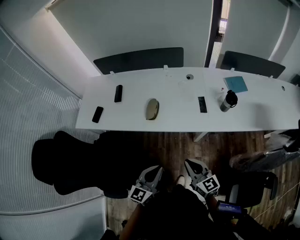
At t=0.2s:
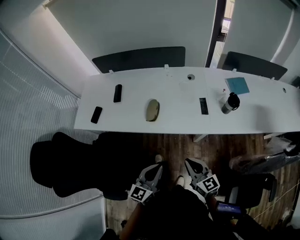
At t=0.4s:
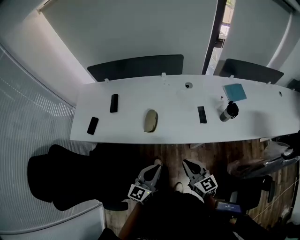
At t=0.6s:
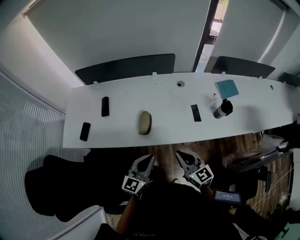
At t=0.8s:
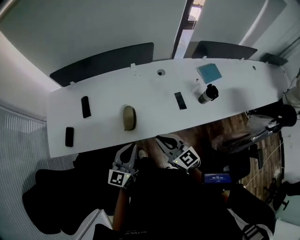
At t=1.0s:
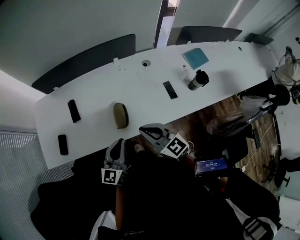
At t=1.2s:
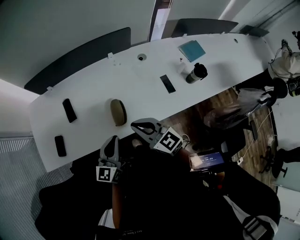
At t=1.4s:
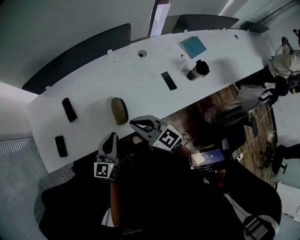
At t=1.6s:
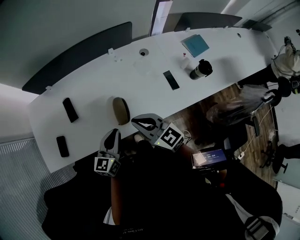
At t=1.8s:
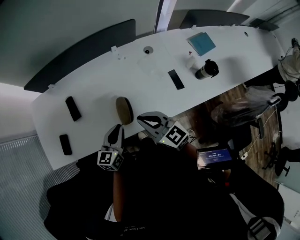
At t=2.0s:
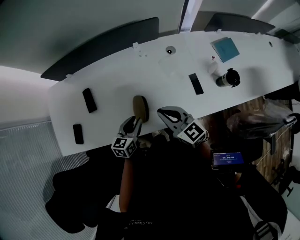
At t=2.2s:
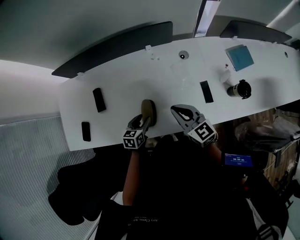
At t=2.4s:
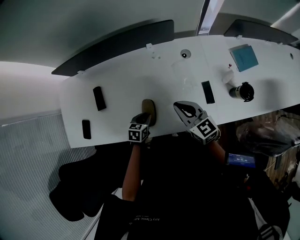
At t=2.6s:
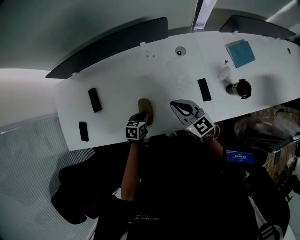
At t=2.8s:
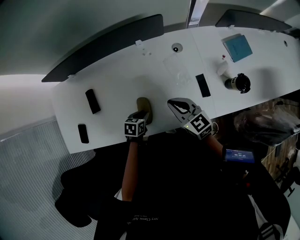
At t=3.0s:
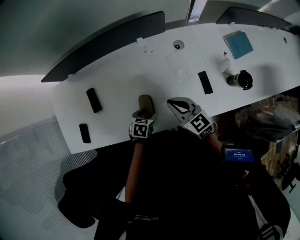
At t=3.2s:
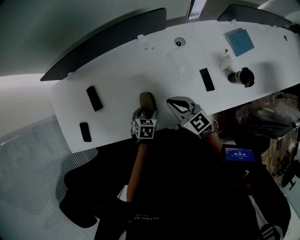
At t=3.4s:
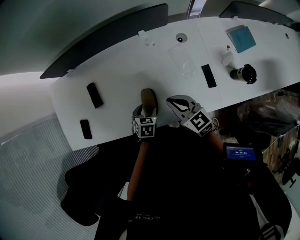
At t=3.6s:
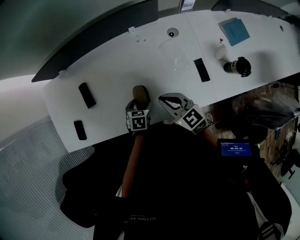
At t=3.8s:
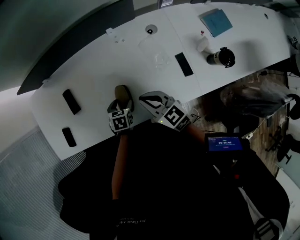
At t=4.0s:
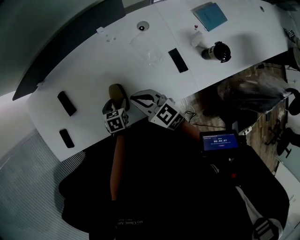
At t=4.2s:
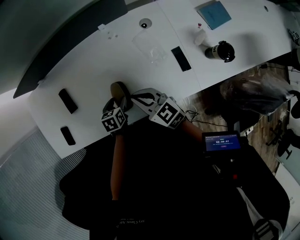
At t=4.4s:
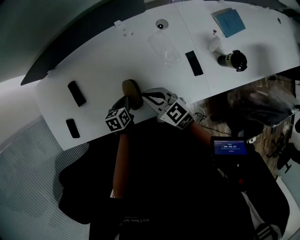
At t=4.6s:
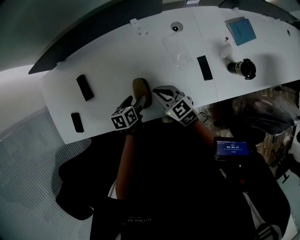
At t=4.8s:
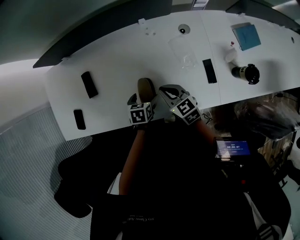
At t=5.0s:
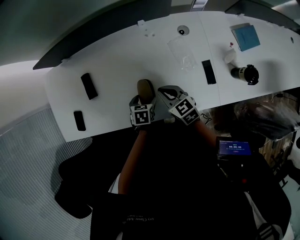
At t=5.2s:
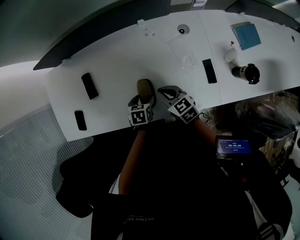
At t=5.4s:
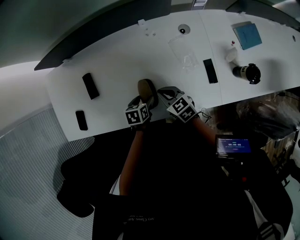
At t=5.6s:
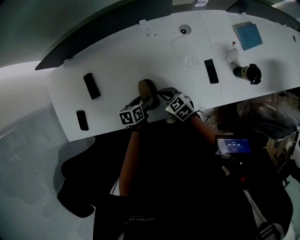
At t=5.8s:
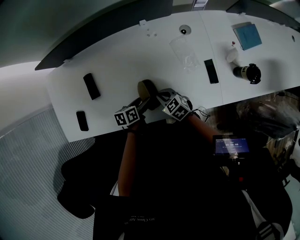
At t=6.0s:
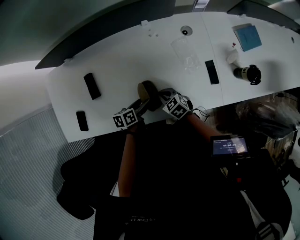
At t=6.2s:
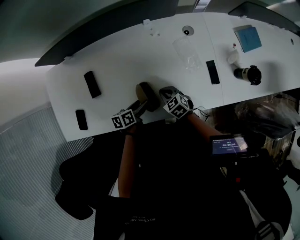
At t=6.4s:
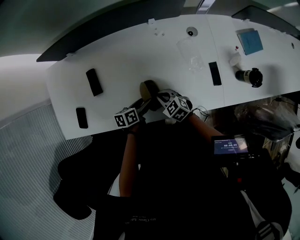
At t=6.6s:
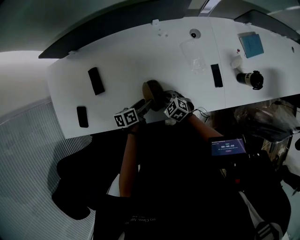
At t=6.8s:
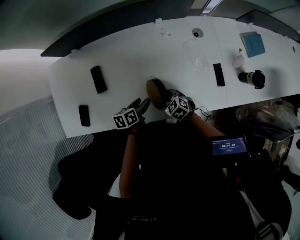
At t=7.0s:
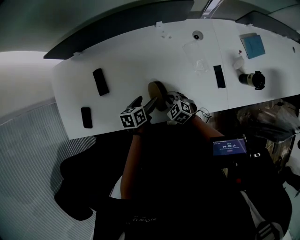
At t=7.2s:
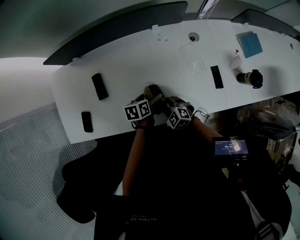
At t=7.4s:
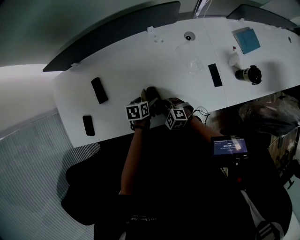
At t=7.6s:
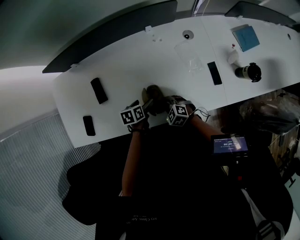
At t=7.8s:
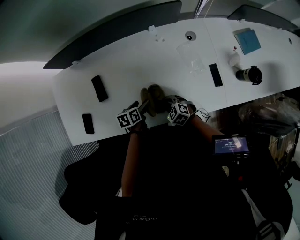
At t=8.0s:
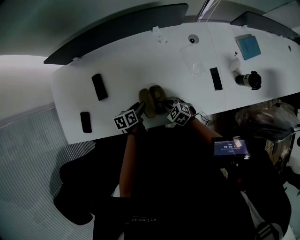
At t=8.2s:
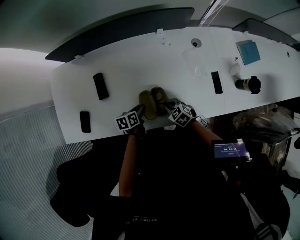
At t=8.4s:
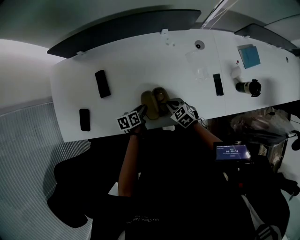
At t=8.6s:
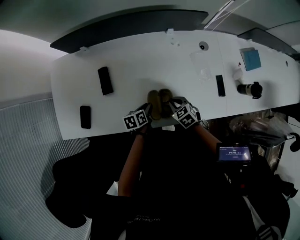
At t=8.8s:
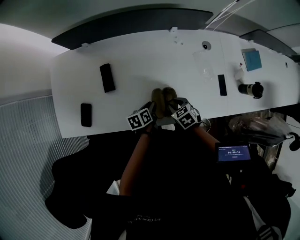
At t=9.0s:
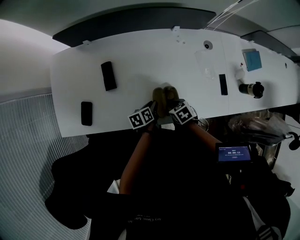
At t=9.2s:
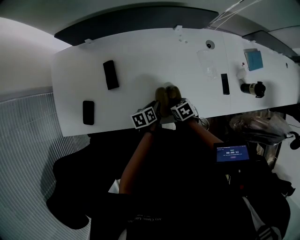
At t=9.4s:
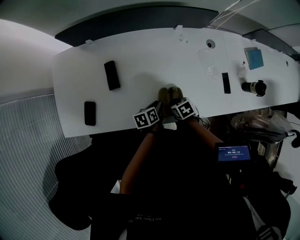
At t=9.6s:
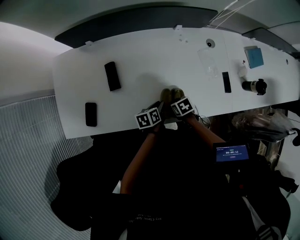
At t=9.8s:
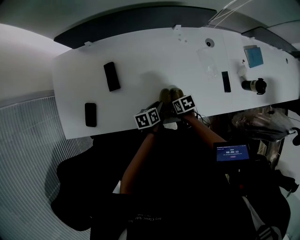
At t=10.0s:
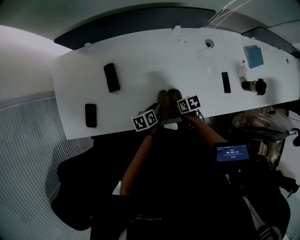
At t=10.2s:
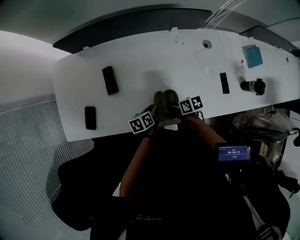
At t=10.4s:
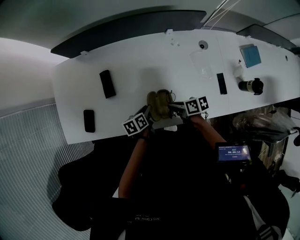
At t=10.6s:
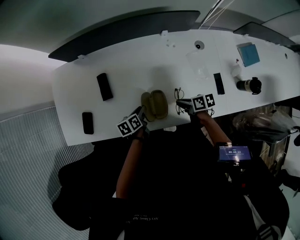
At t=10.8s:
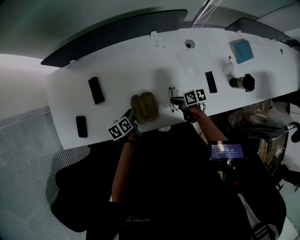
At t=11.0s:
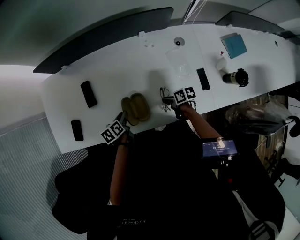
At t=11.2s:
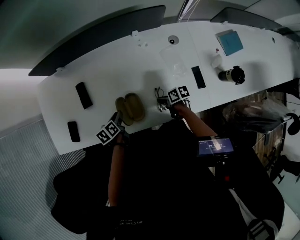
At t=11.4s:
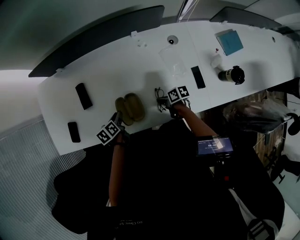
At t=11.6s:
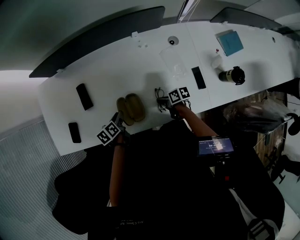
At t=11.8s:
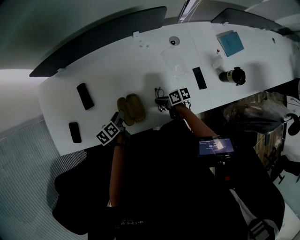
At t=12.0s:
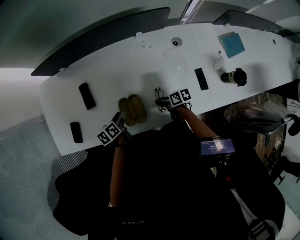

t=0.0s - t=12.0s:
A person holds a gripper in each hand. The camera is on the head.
t=0.0s - t=1.6s: The two grippers go some 35 cm forward and to the left.
t=1.6s - t=3.0s: The left gripper goes about 20 cm downward and forward, tips its fingers downward by about 50 degrees, and opens, while the right gripper travels forward, to the right and downward by roughly 15 cm.
t=3.0s - t=4.4s: The right gripper moves about 5 cm. Meanwhile the left gripper changes place by approximately 5 cm, turns by roughly 30 degrees, and closes up.
t=4.4s - t=6.0s: The left gripper turns by approximately 20 degrees, and opens; the right gripper shifts approximately 15 cm downward, and swivels approximately 30 degrees.
t=6.0s - t=7.6s: The right gripper rotates roughly 20 degrees.
t=7.6s - t=9.0s: The left gripper moves about 5 cm, swivels about 20 degrees, and closes. Meanwhile the right gripper turns by roughly 40 degrees, and opens.
t=9.0s - t=10.4s: The right gripper is displaced upward by some 5 cm, rotates about 50 degrees, and closes.
t=10.4s - t=12.0s: The right gripper heads to the right and downward, covering about 10 cm, and opens.

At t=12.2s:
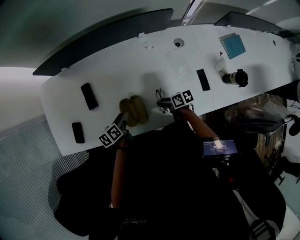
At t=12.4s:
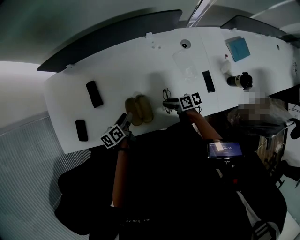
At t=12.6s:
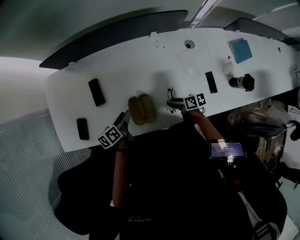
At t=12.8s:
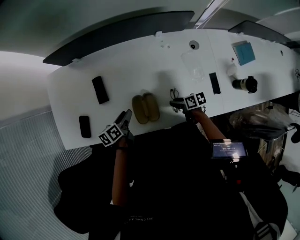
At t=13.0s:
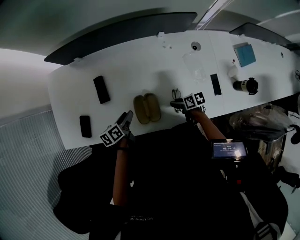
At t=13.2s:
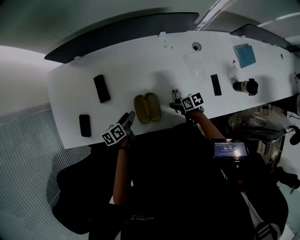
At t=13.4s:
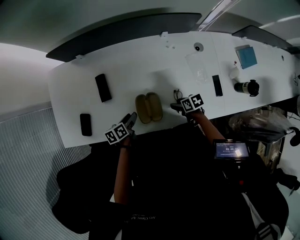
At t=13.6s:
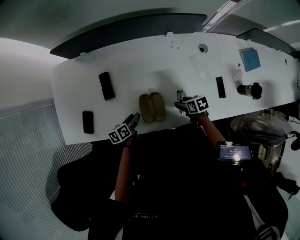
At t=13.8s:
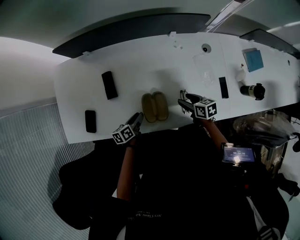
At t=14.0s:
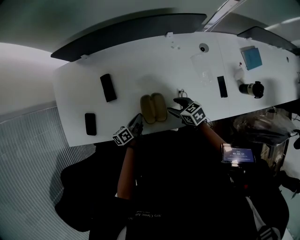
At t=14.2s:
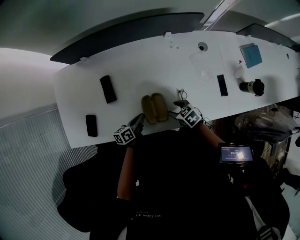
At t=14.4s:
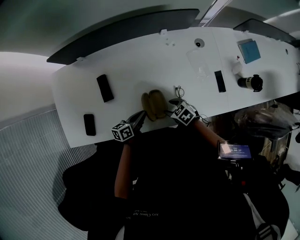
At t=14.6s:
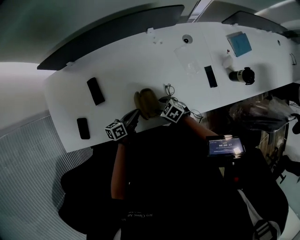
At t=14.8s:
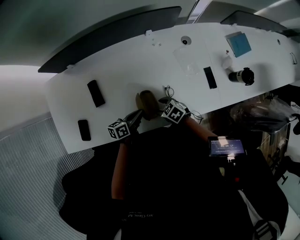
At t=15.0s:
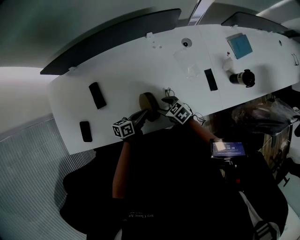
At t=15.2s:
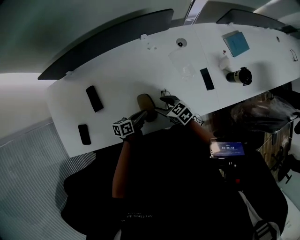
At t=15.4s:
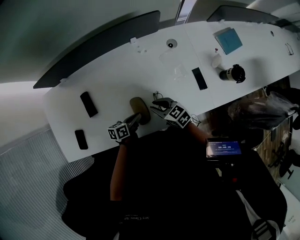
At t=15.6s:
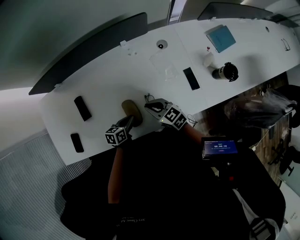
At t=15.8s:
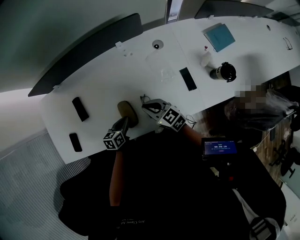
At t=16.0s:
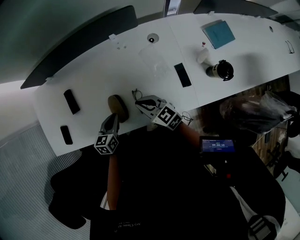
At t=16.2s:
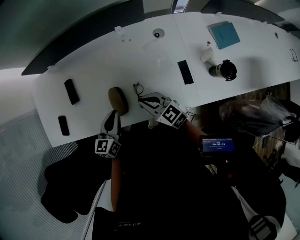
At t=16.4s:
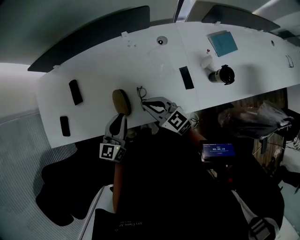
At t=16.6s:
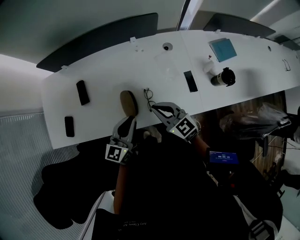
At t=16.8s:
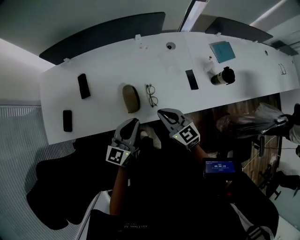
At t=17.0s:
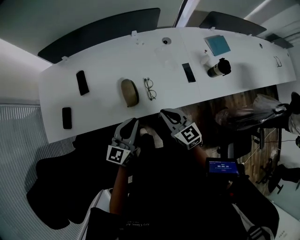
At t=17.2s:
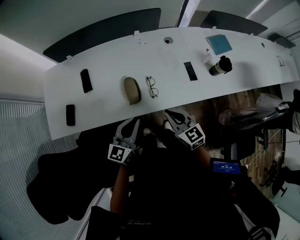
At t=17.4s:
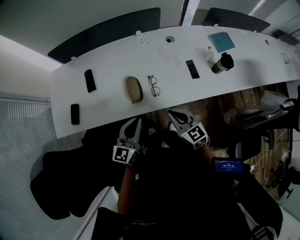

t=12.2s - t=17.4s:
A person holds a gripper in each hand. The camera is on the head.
t=12.2s - t=14.0s: The right gripper goes some 10 cm to the left and upward, swivels some 40 degrees, and opens up; the left gripper travels downward and to the left by about 10 cm, and closes.
t=14.0s - t=15.6s: The left gripper moves some 15 cm, and changes its angle by approximately 40 degrees. The right gripper moves upward, approximately 5 cm, turns by approximately 20 degrees, and closes up.
t=15.6s - t=17.4s: The left gripper shifts approximately 30 cm upward and backward, and angles its fingers upward, by approximately 30 degrees. The right gripper travels backward and upward by about 25 cm.

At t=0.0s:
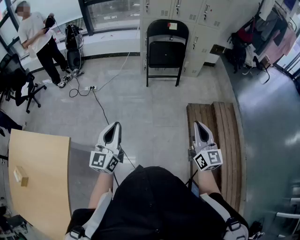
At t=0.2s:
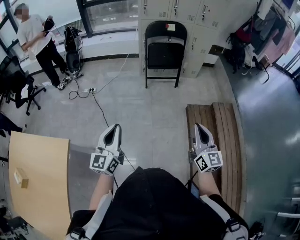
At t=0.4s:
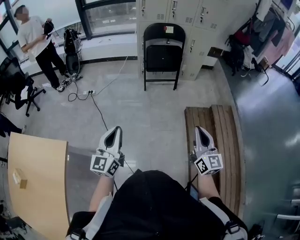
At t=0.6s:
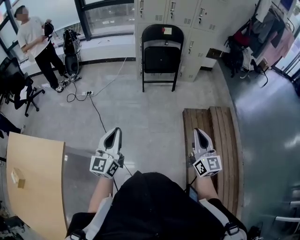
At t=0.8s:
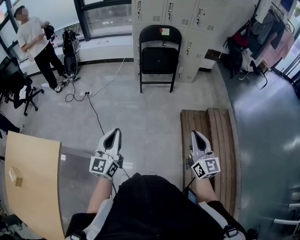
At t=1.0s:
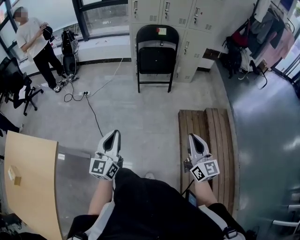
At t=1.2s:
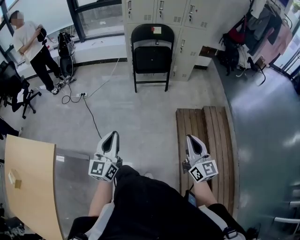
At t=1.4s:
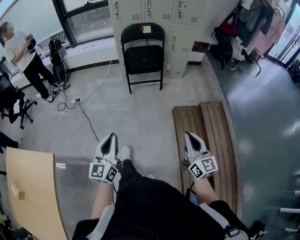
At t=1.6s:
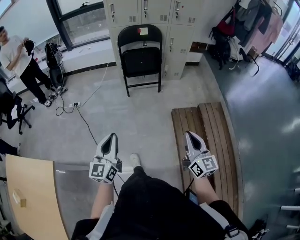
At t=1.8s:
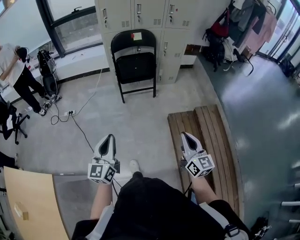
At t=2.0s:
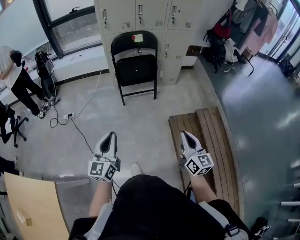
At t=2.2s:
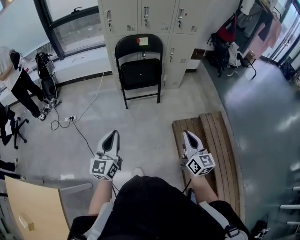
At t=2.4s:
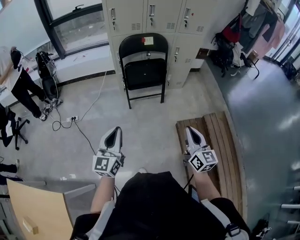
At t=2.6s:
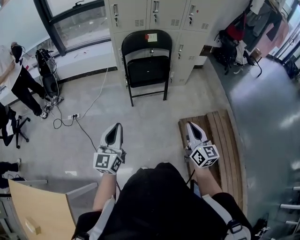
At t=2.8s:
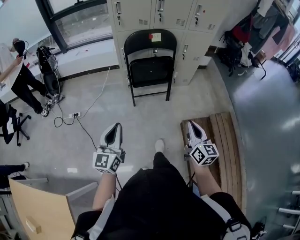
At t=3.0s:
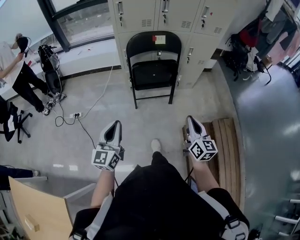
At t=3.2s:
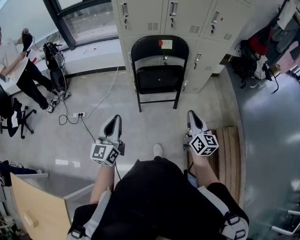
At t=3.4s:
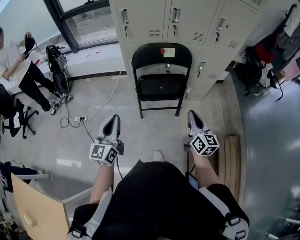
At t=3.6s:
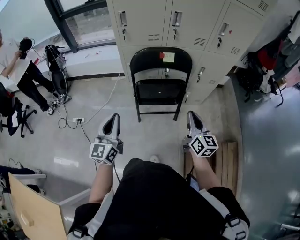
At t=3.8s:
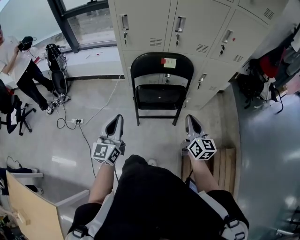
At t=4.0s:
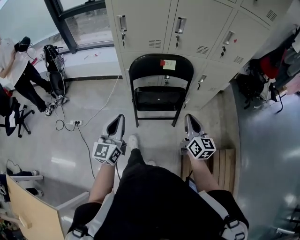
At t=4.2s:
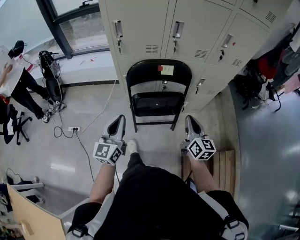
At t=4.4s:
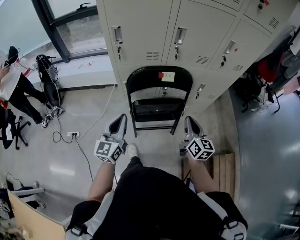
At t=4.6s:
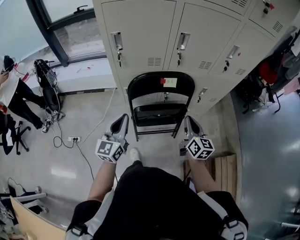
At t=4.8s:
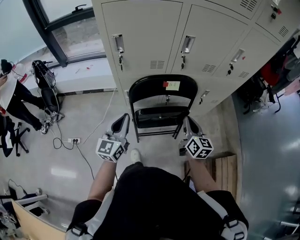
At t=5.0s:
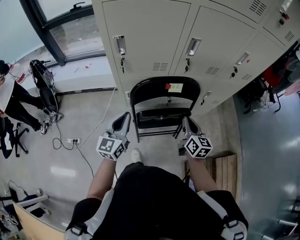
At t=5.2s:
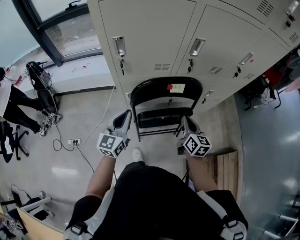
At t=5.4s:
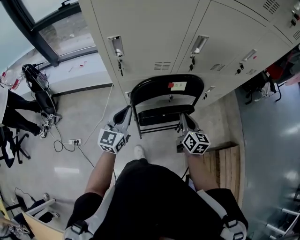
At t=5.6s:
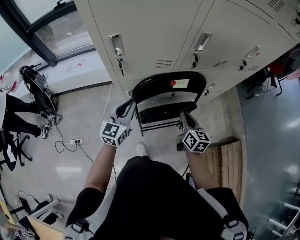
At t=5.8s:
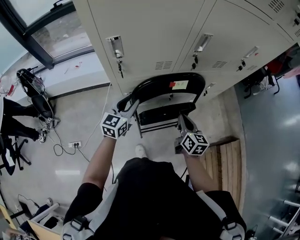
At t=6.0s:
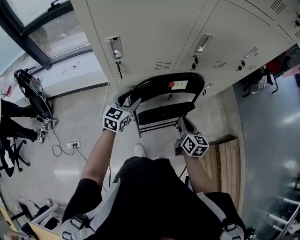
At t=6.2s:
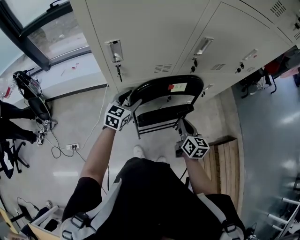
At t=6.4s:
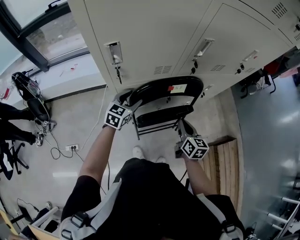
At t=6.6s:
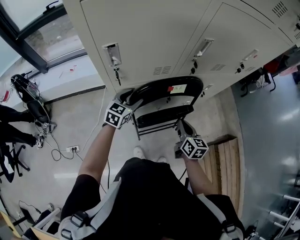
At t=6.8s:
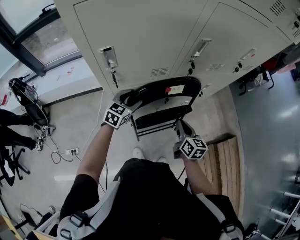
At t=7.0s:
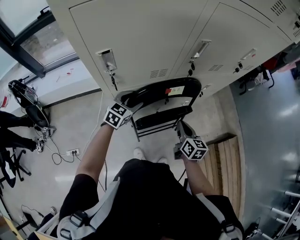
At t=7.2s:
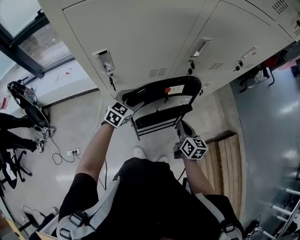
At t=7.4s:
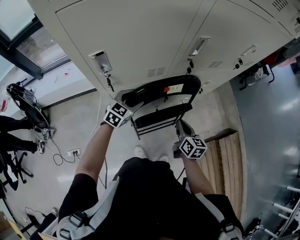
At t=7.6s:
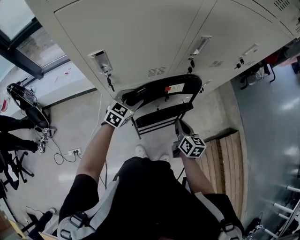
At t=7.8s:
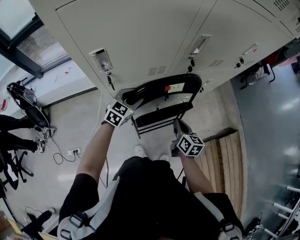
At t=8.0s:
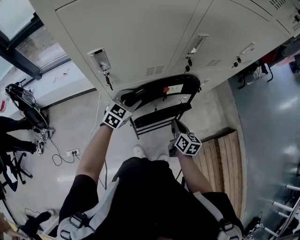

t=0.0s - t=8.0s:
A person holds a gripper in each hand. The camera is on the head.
t=0.0s - t=1.6s: The left gripper is displaced to the right and forward by about 15 cm, while the right gripper shifts about 15 cm to the right.
t=1.6s - t=3.2s: The pair of grippers is taken forward, approximately 40 cm.
t=3.2s - t=4.8s: Both grippers move forward, some 35 cm.
t=4.8s - t=6.4s: The right gripper shifts about 10 cm downward and to the left, while the left gripper goes about 25 cm forward and downward, turns by about 40 degrees, and opens its fingers.
t=6.4s - t=8.0s: The right gripper shifts approximately 5 cm downward.
